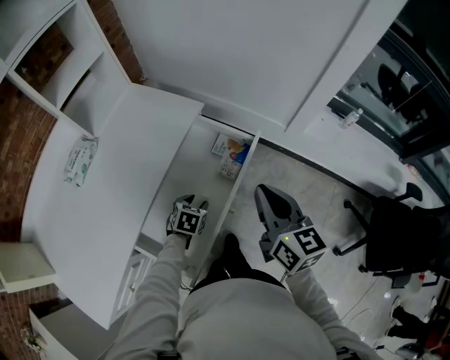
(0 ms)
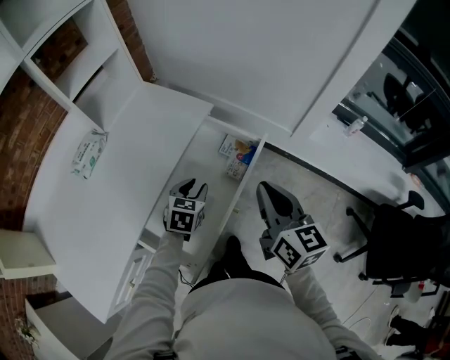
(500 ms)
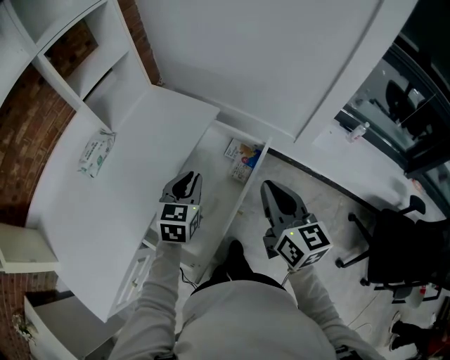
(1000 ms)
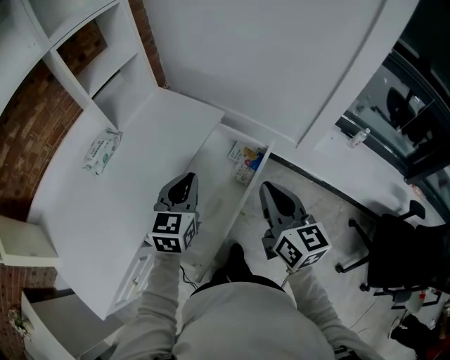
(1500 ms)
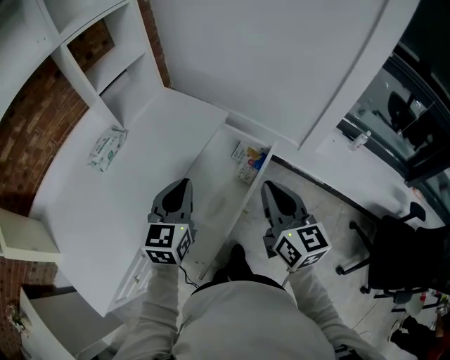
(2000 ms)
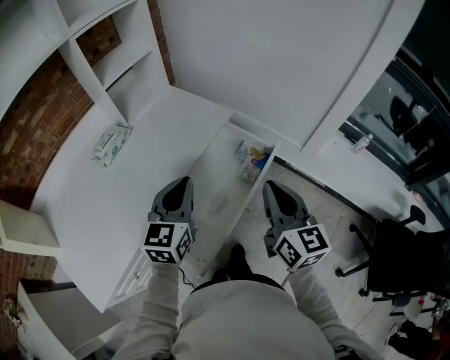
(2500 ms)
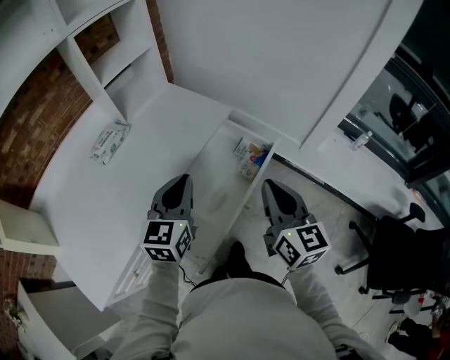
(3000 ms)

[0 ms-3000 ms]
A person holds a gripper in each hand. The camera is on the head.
0 ms to 1500 ms: The left gripper goes approximately 25 cm upward, angles its fingers upward, by about 40 degrees, and closes its fingers.
1500 ms to 3000 ms: The left gripper shifts by approximately 5 cm.

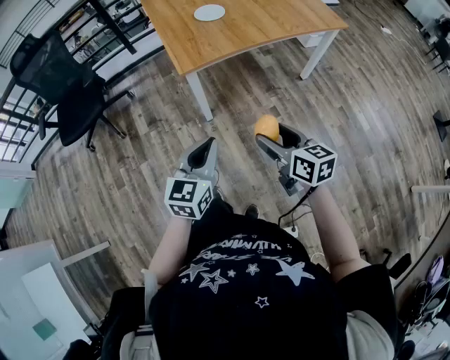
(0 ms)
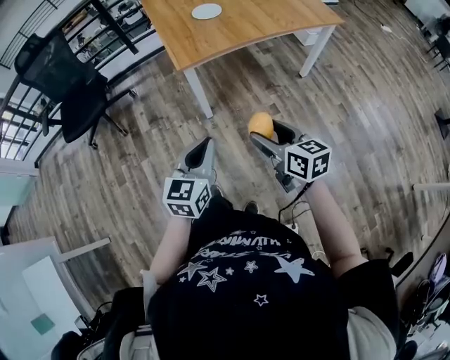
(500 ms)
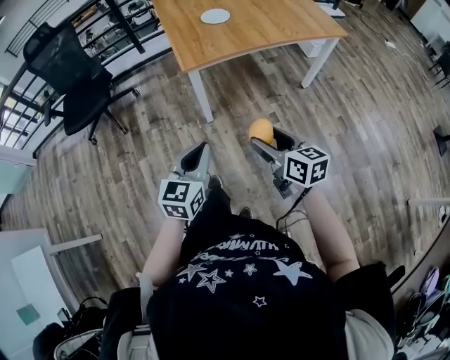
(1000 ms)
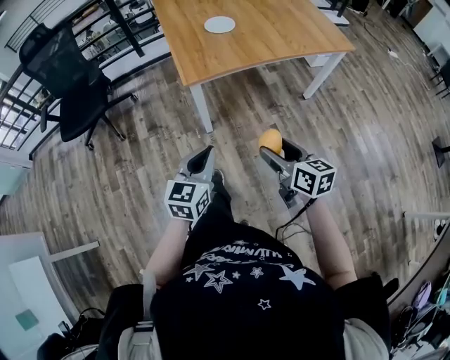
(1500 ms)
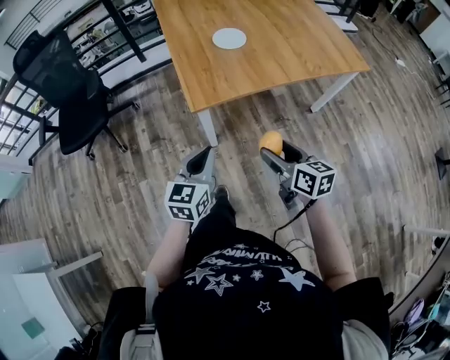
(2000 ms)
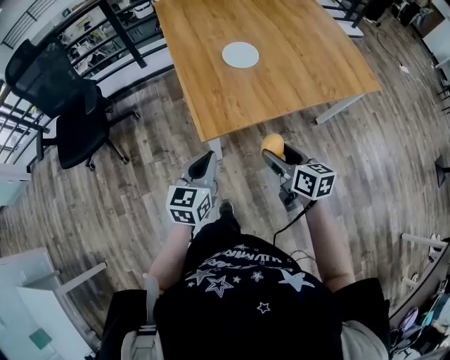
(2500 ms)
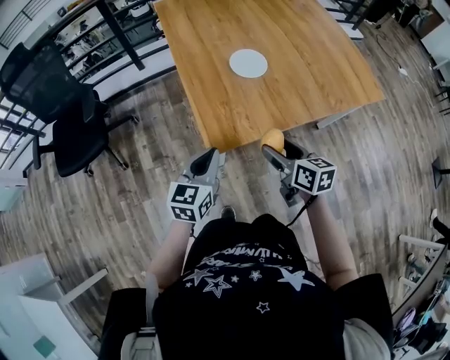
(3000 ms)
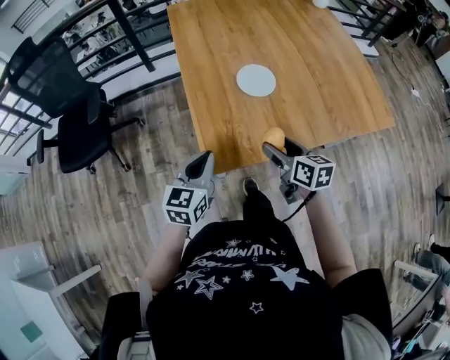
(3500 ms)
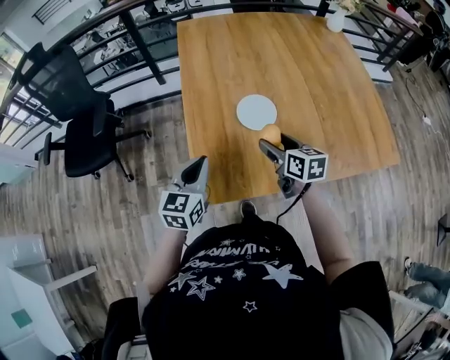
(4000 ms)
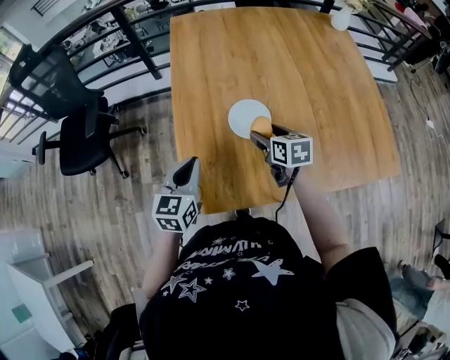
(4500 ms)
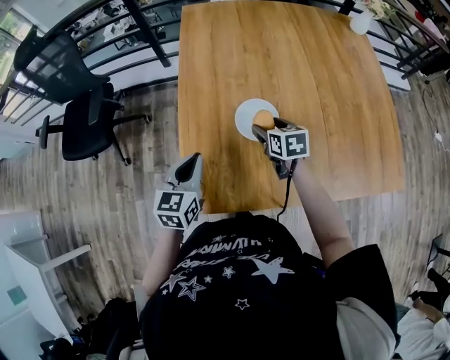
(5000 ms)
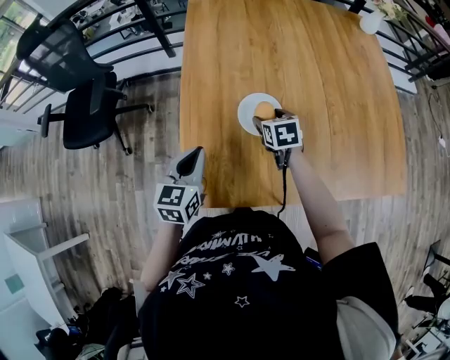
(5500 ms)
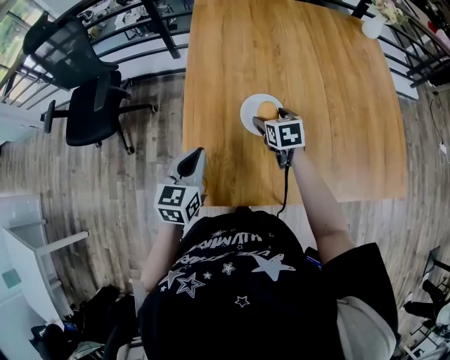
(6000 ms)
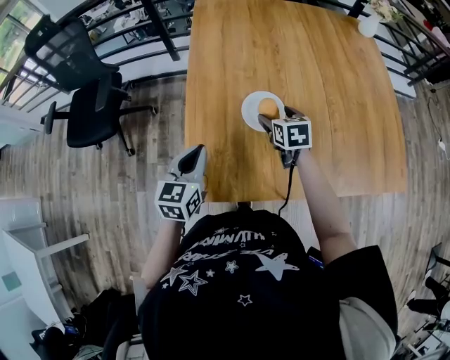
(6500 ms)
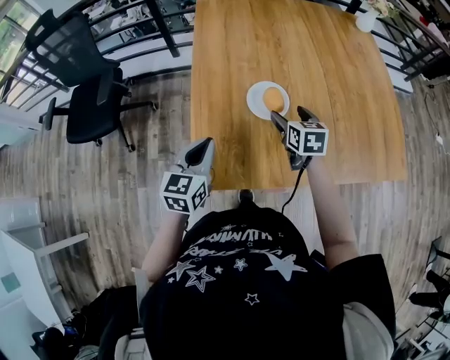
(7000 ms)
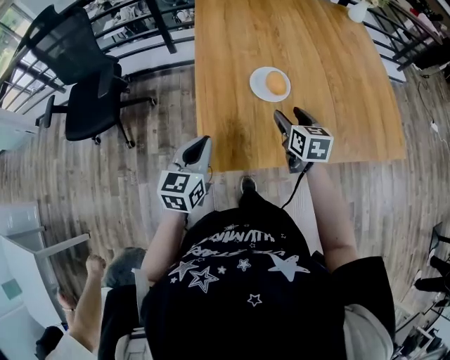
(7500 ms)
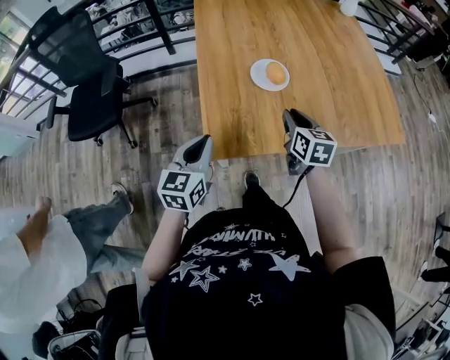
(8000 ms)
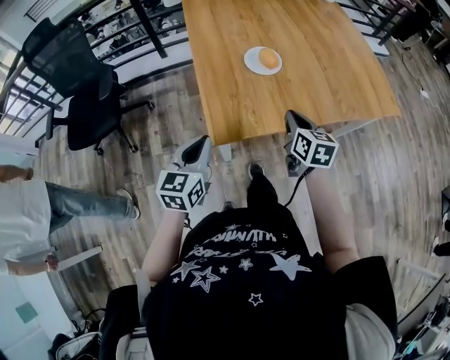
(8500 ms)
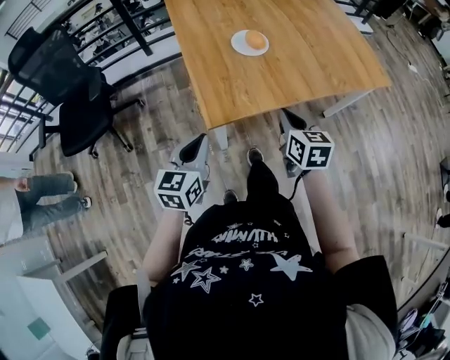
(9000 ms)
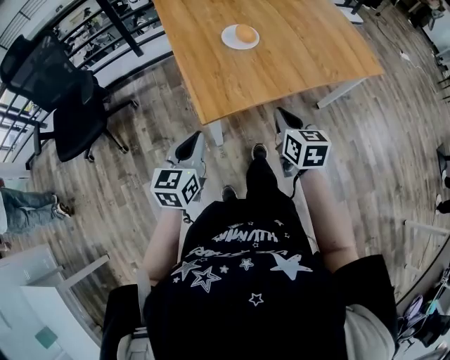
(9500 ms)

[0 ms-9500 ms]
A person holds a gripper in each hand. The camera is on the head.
0 ms to 2000 ms: The grippers both shift forward by roughly 20 cm.
2000 ms to 4000 ms: Both grippers move forward, about 40 cm.
4000 ms to 5500 ms: The right gripper goes some 15 cm forward and downward, and changes its angle by some 30 degrees. The left gripper heads forward, covering about 5 cm.
5500 ms to 7500 ms: The left gripper moves backward, roughly 10 cm; the right gripper moves backward and upward, about 15 cm, and turns by some 20 degrees.
7500 ms to 9500 ms: The right gripper heads backward, covering some 25 cm, and closes. The left gripper goes about 15 cm backward.

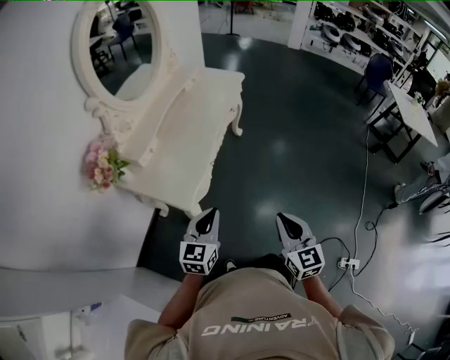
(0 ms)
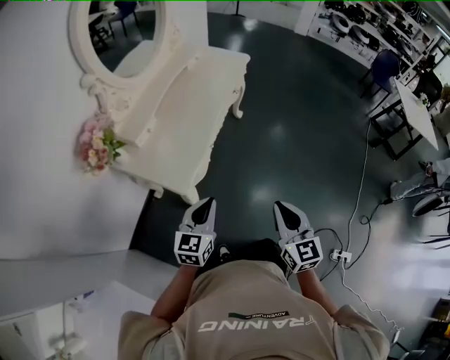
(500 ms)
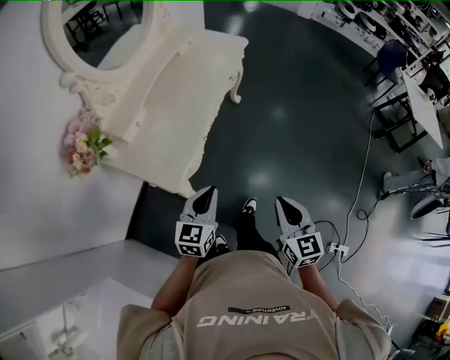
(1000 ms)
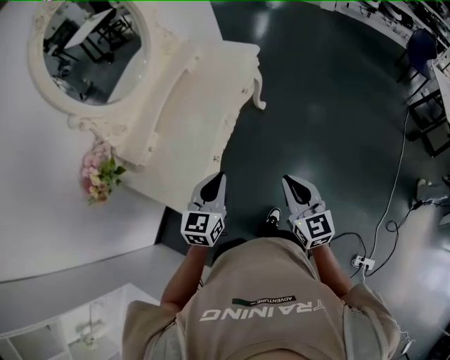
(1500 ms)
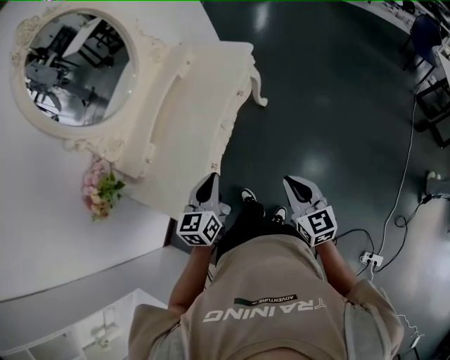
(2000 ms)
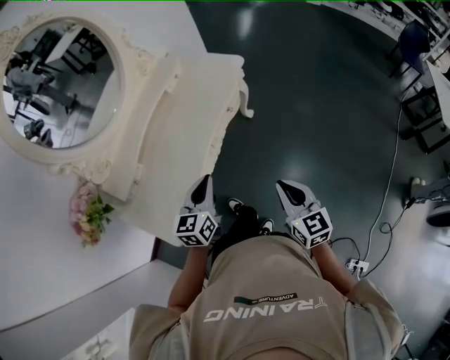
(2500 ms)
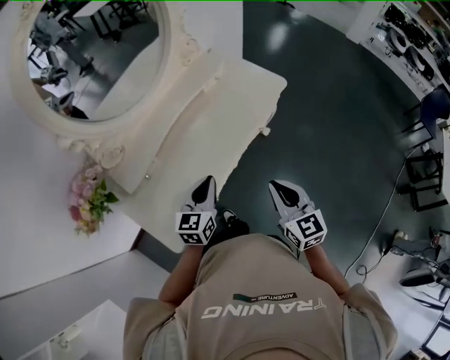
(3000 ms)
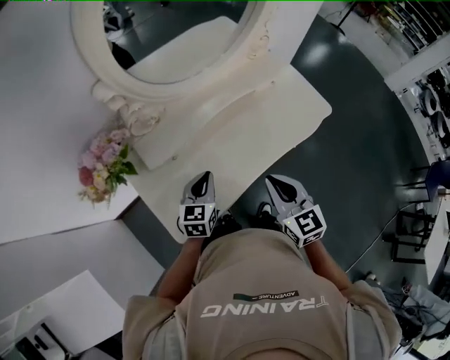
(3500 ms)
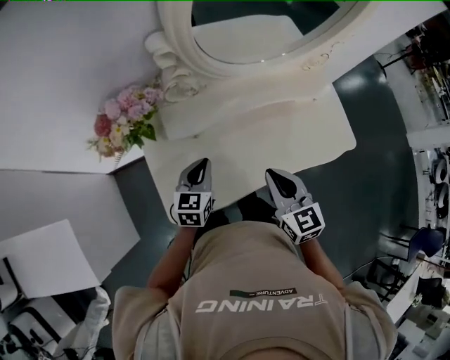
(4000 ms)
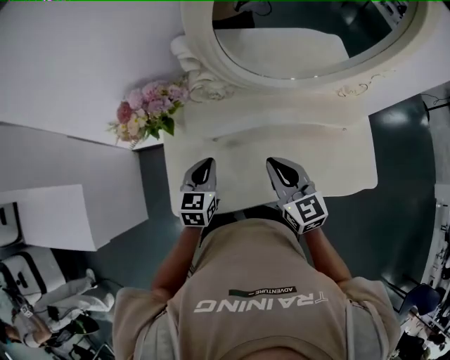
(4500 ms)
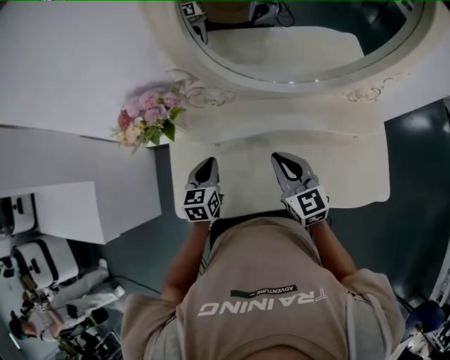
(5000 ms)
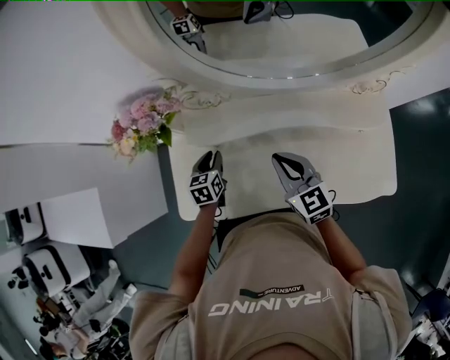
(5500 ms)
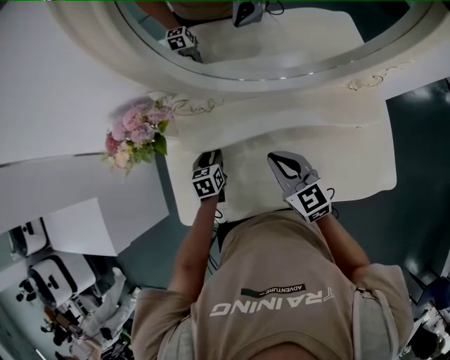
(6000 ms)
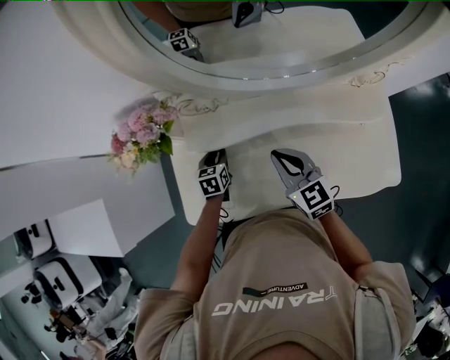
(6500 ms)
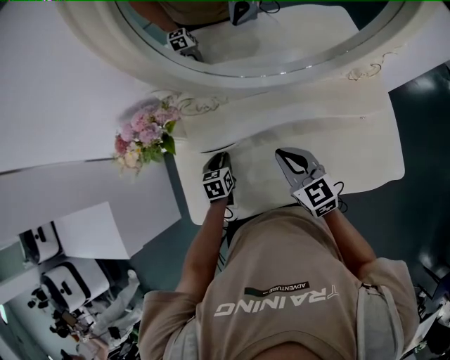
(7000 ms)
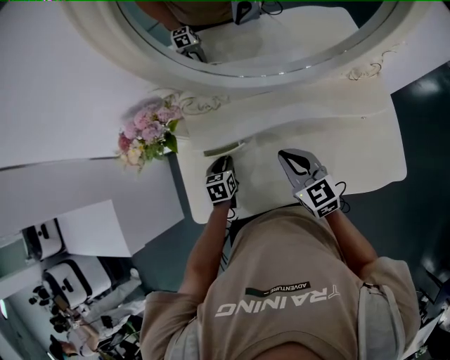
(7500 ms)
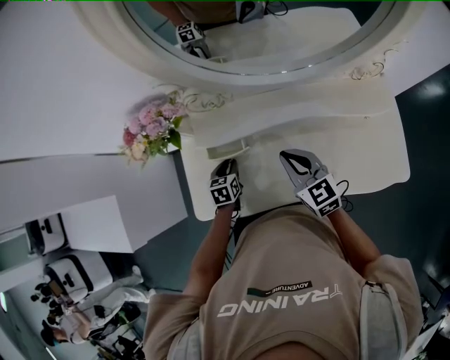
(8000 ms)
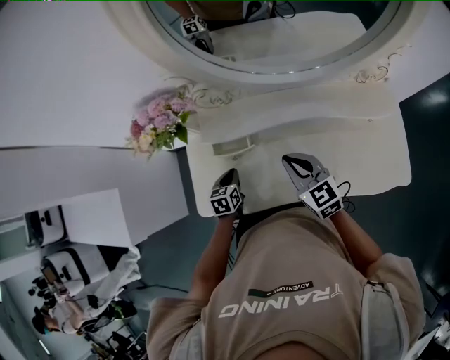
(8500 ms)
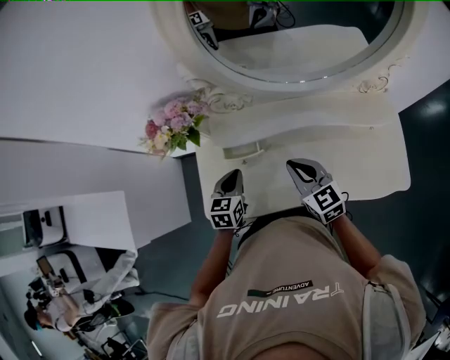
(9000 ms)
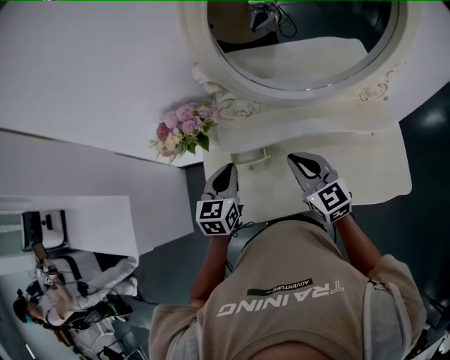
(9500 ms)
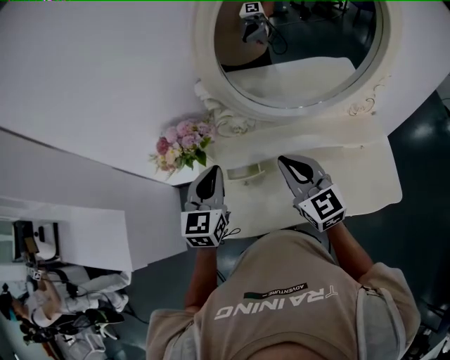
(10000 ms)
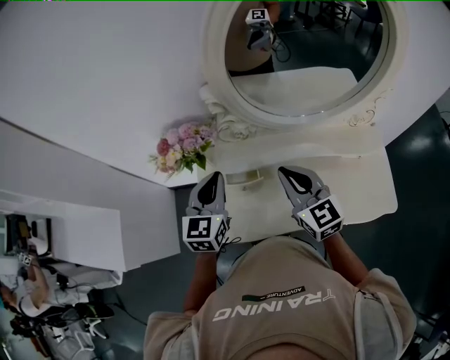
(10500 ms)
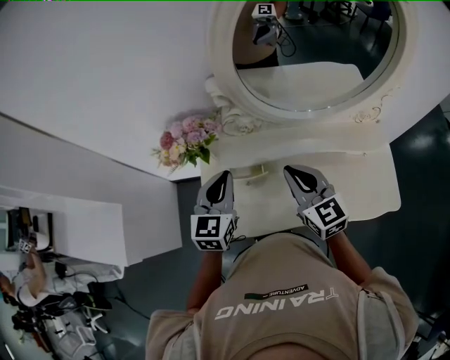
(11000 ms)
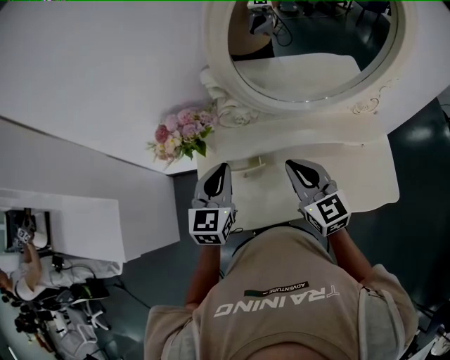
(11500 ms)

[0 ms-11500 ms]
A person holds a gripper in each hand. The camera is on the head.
0 ms to 2000 ms: Both grippers travel together forward, roughly 25 cm.
2000 ms to 4000 ms: The right gripper moves some 40 cm, and changes its angle by about 50 degrees. Meanwhile the left gripper ends up about 30 cm from where it was, and rotates roughly 40 degrees.
4000 ms to 6000 ms: The left gripper is displaced downward by roughly 15 cm, turns by roughly 30 degrees, and opens its fingers; the right gripper ends up some 15 cm from where it was, and rotates about 20 degrees.
6000 ms to 7500 ms: The grippers make only small movements.
7500 ms to 9500 ms: The right gripper is displaced upward by roughly 10 cm, while the left gripper travels upward by roughly 25 cm, changes its angle by roughly 30 degrees, and closes up.
9500 ms to 11500 ms: The left gripper goes approximately 5 cm upward.

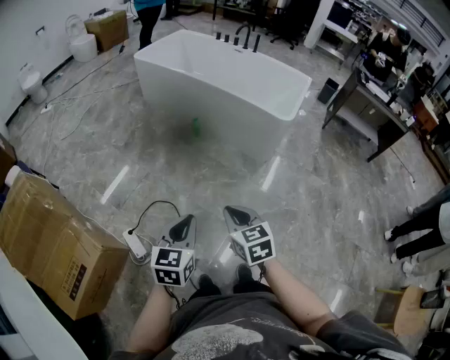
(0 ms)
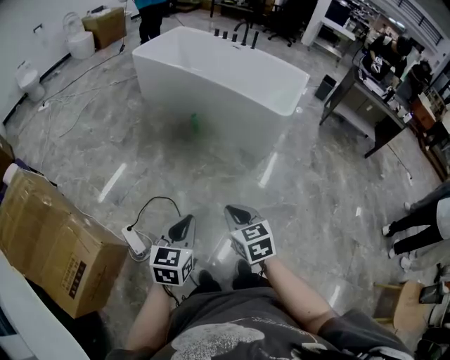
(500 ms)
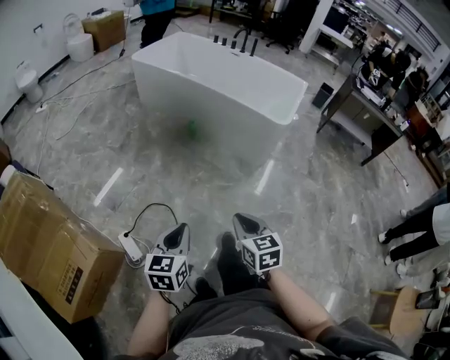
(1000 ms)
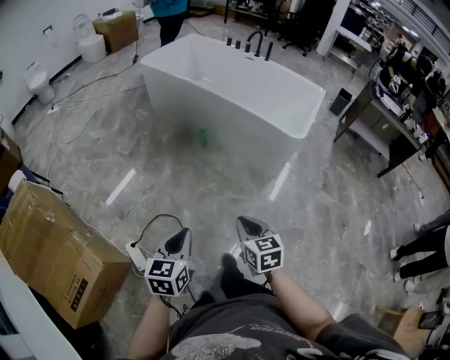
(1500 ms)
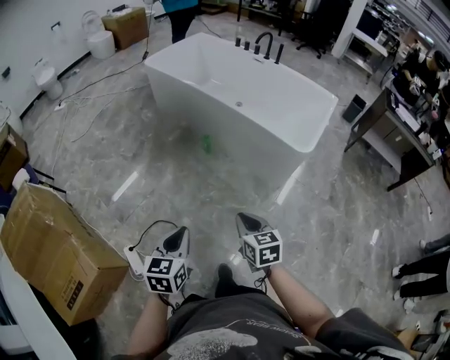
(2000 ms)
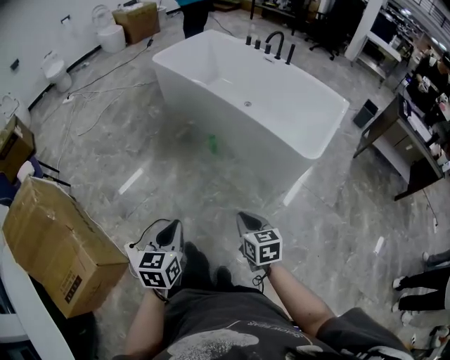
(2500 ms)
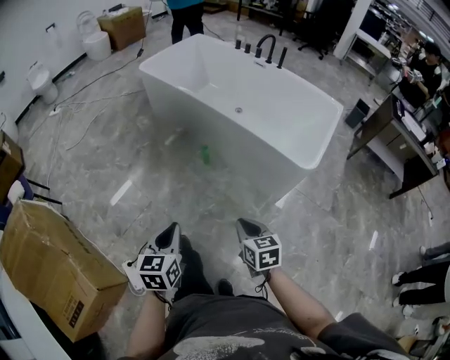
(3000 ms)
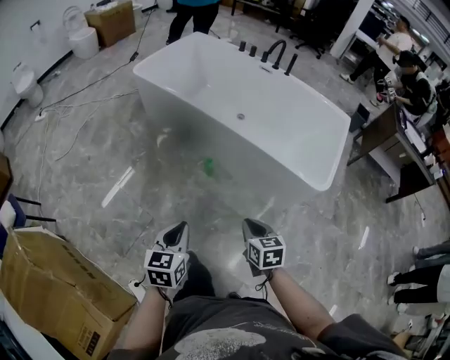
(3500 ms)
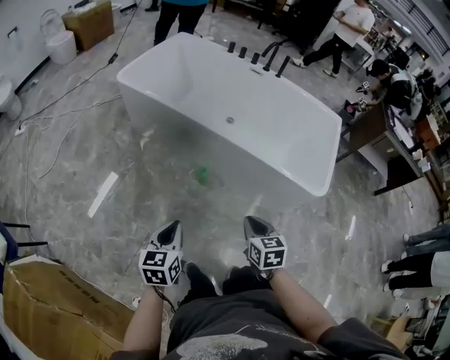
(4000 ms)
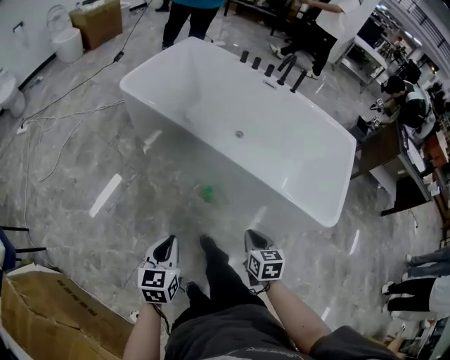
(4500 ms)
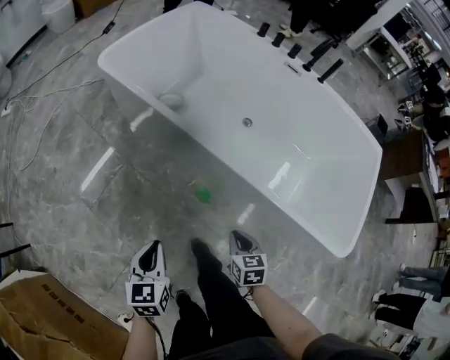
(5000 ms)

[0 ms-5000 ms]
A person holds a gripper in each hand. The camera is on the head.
0 ms to 2500 ms: The right gripper travels forward and to the right by roughly 25 cm. The left gripper goes some 20 cm forward.
2500 ms to 5000 ms: The two grippers travel together, forward, some 60 cm. The right gripper travels downward by roughly 25 cm.
